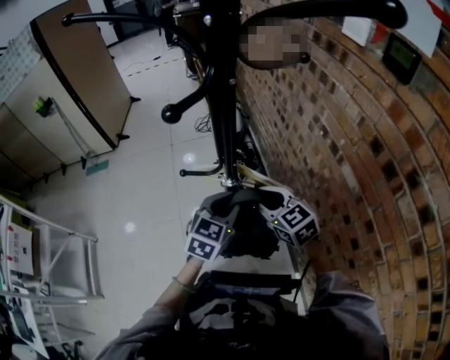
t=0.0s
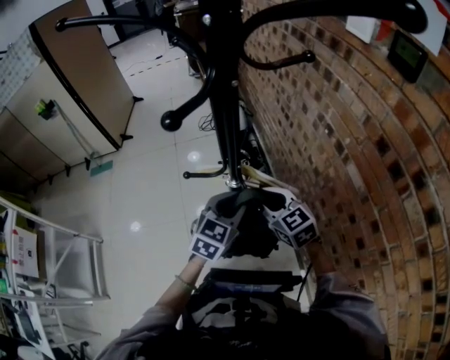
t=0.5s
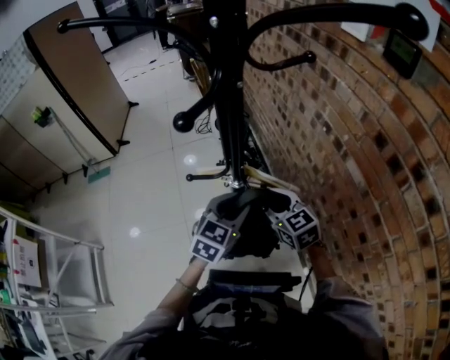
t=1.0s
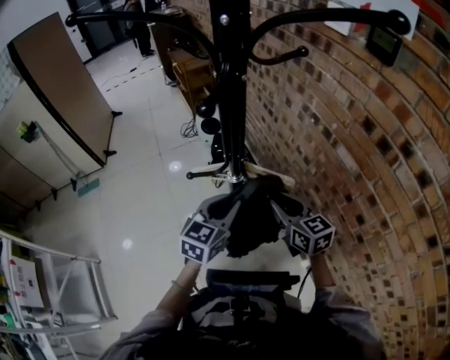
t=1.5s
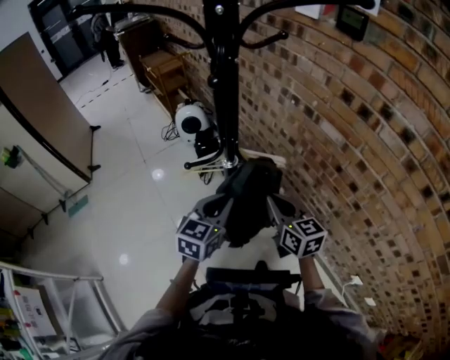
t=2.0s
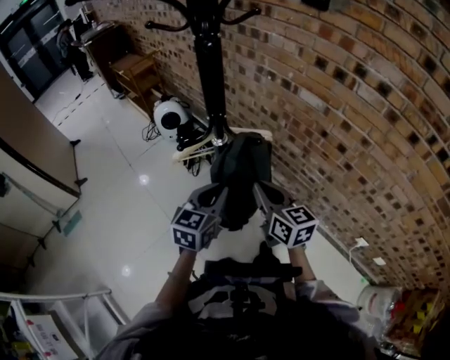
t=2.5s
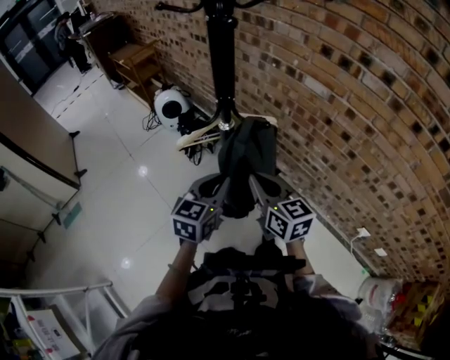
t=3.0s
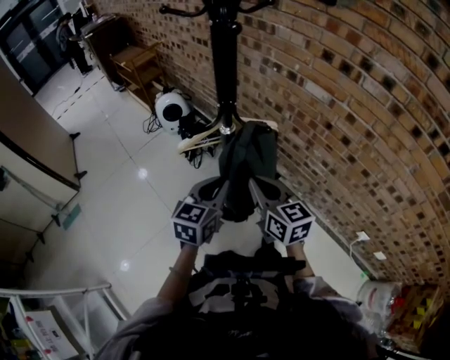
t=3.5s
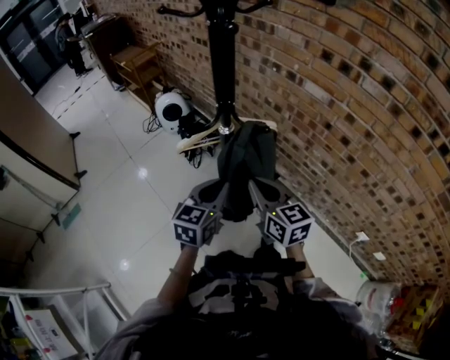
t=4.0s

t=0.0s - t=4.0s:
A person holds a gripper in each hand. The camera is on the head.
t=0.0s - t=2.0s: The left gripper moves approximately 10 cm, and turns by roughly 20 degrees. Meanwhile the right gripper shifts by roughly 10 cm, and turns by about 40 degrees.
t=2.0s - t=4.0s: The left gripper goes approximately 5 cm backward. The right gripper heads backward and to the left, covering approximately 10 cm.

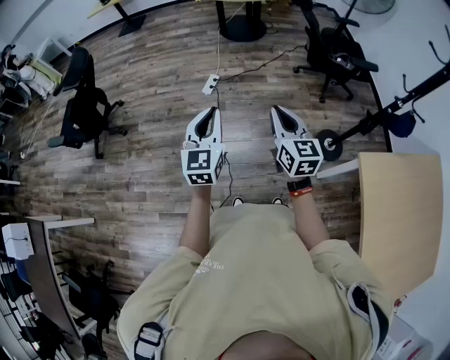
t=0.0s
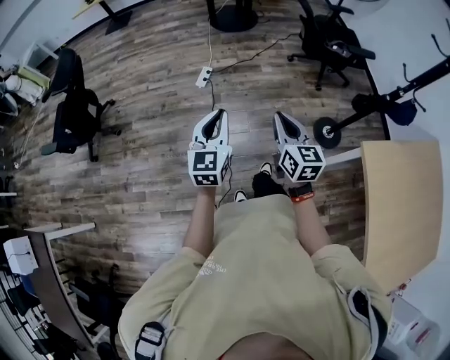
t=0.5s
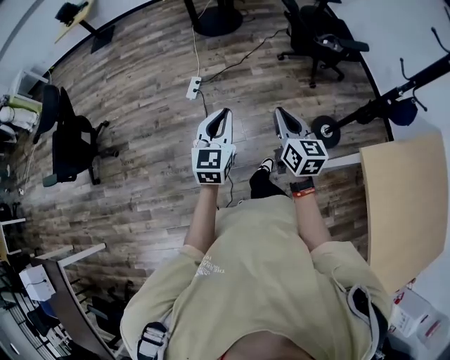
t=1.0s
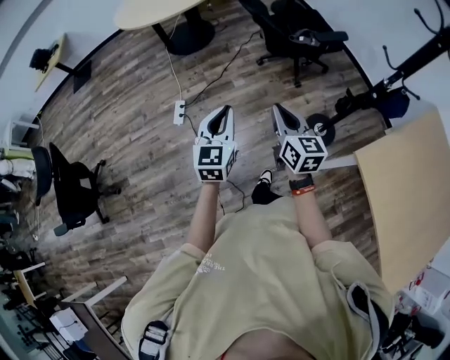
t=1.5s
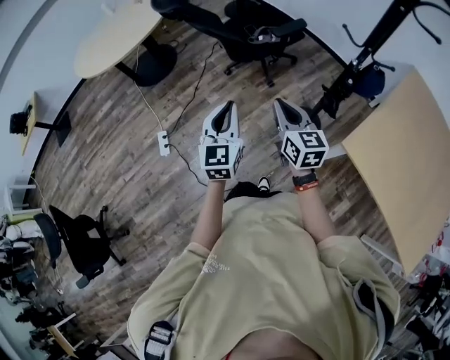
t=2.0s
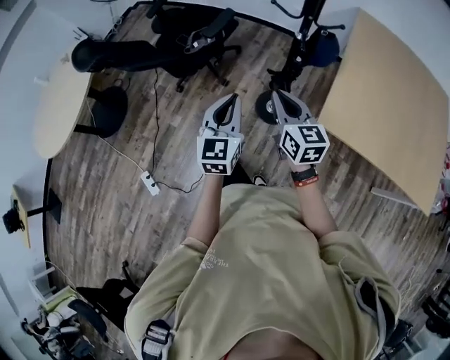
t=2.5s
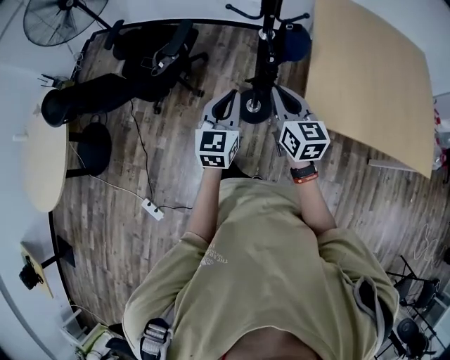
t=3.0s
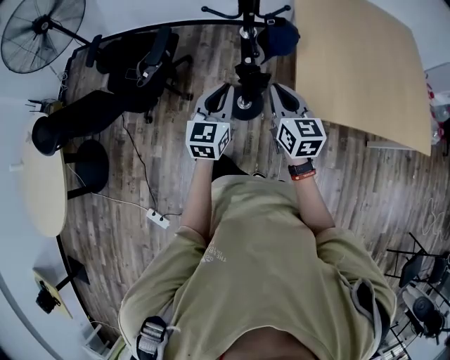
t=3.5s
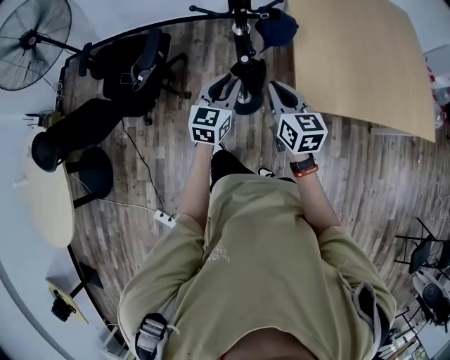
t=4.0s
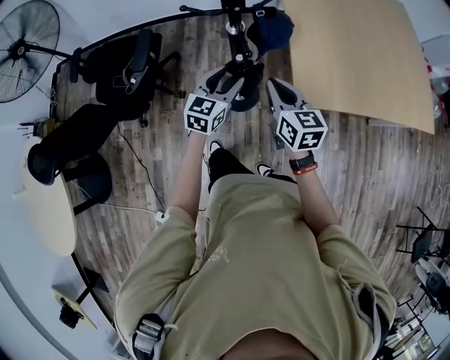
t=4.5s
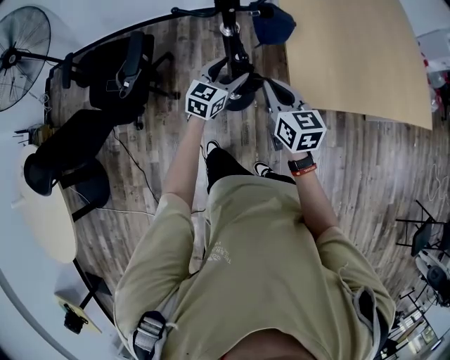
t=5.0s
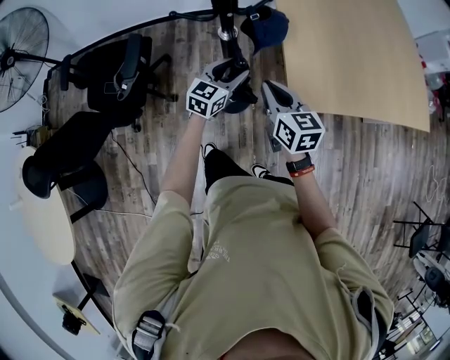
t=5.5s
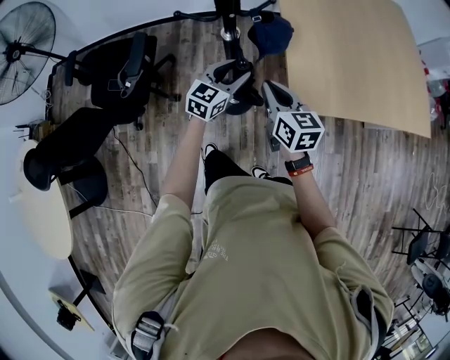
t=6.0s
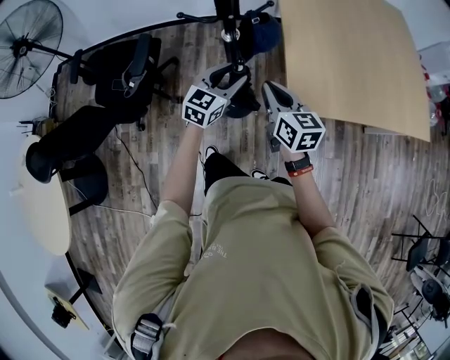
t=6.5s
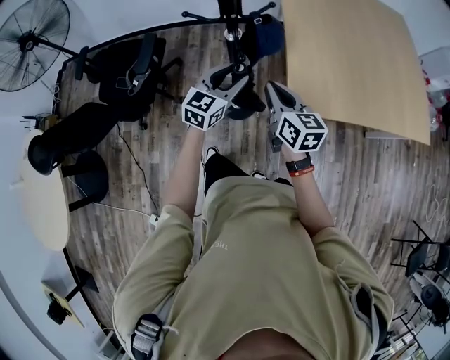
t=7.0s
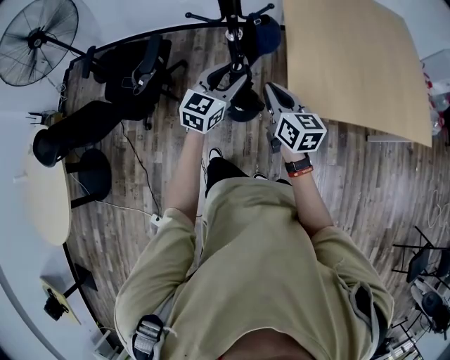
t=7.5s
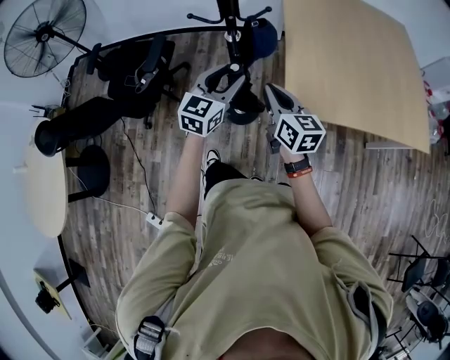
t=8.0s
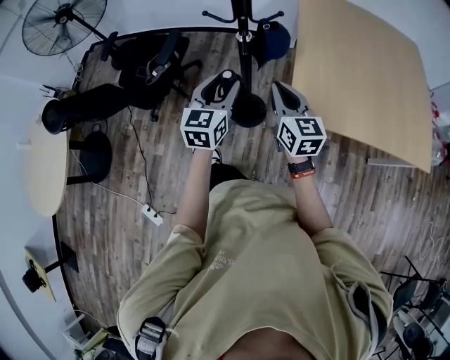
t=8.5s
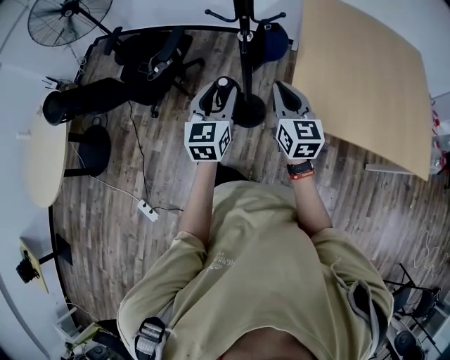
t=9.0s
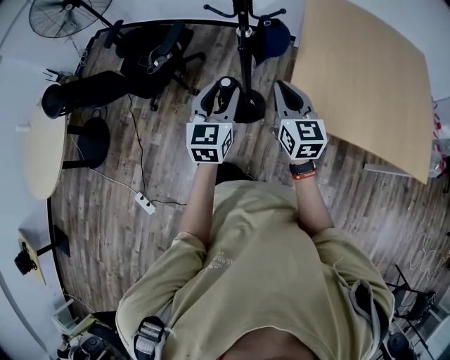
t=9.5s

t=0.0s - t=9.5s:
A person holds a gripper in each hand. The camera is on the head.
t=0.0s - t=2.0s: The two grippers travel together, roughly 50 cm. The right gripper rotates approximately 30 degrees; the left gripper changes its angle by some 30 degrees.
t=2.0s - t=4.0s: The left gripper moves about 40 cm, and swivels roughly 60 degrees. The right gripper moves approximately 30 cm, and changes its angle by approximately 50 degrees.
t=4.0s - t=5.5s: The right gripper shifts by approximately 5 cm. Meanwhile the left gripper heads forward and downward, covering some 10 cm, and opens its fingers.
t=5.5s - t=7.5s: The right gripper is displaced backward by about 5 cm, while the left gripper moves upward and backward, roughly 15 cm.
t=7.5s - t=9.5s: The right gripper travels to the right by approximately 5 cm, and turns by some 20 degrees. The left gripper heads backward, covering approximately 10 cm, and swivels some 30 degrees.

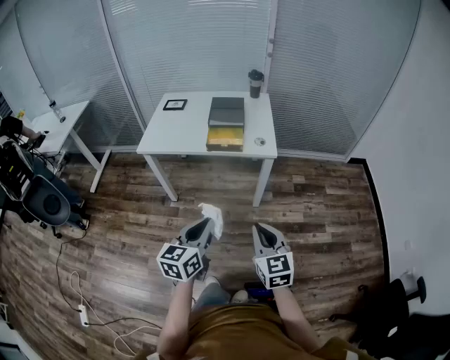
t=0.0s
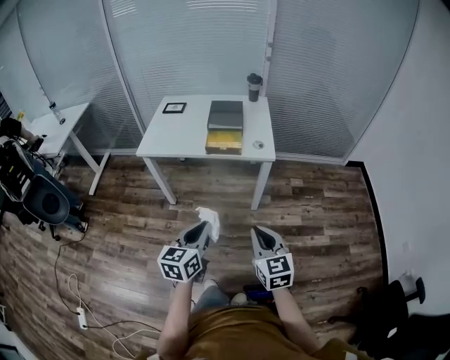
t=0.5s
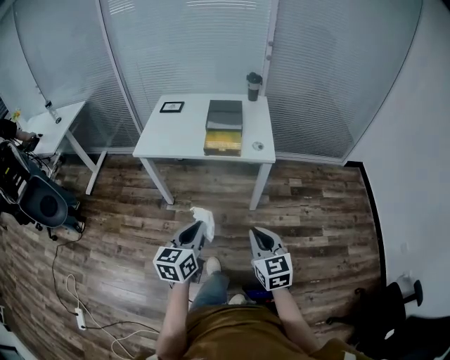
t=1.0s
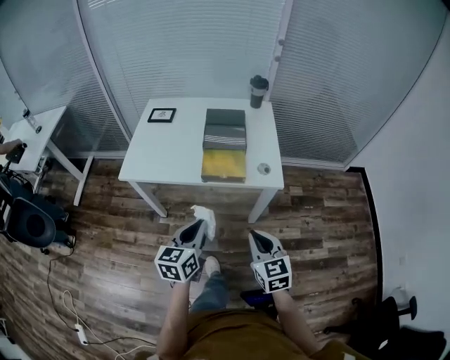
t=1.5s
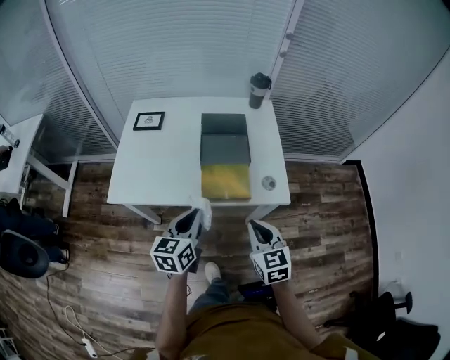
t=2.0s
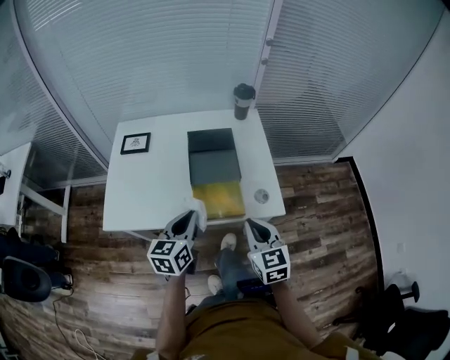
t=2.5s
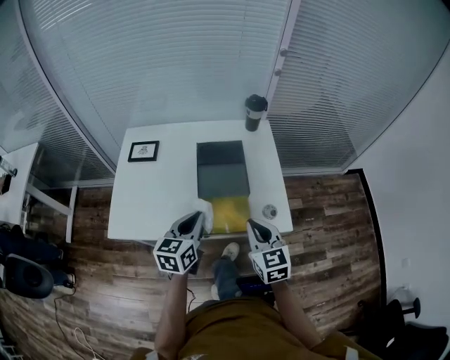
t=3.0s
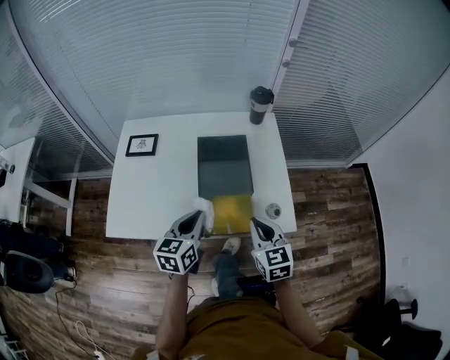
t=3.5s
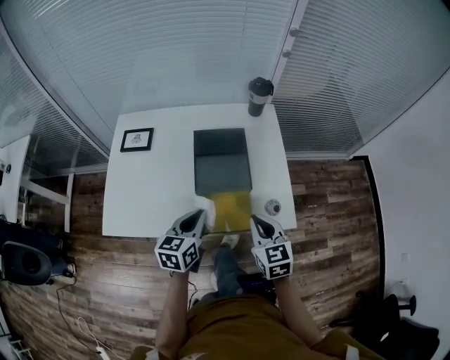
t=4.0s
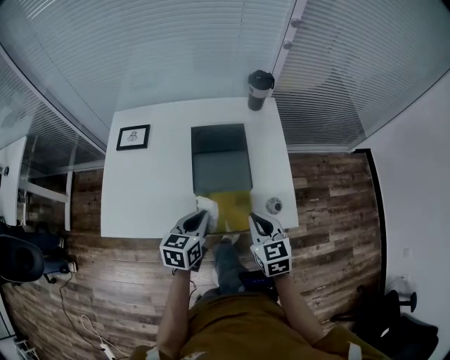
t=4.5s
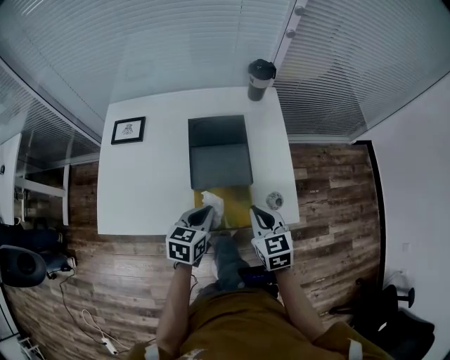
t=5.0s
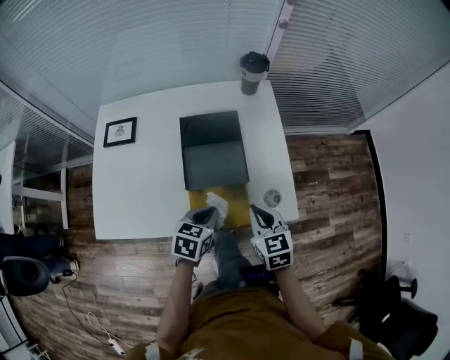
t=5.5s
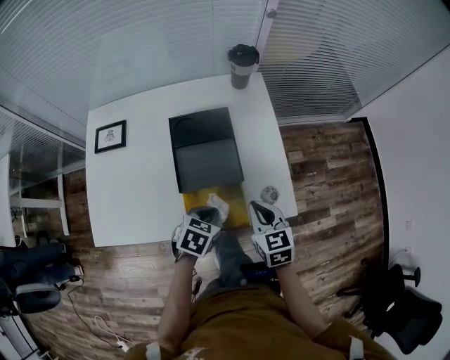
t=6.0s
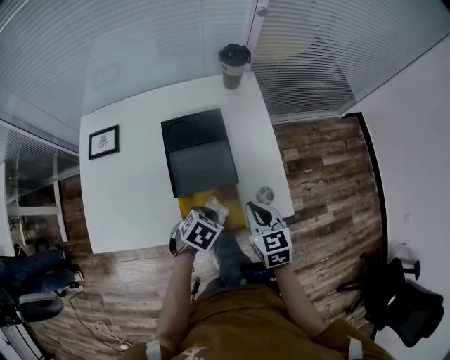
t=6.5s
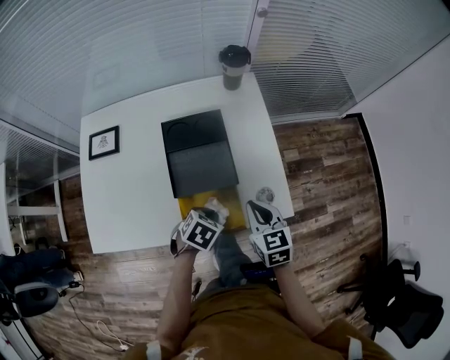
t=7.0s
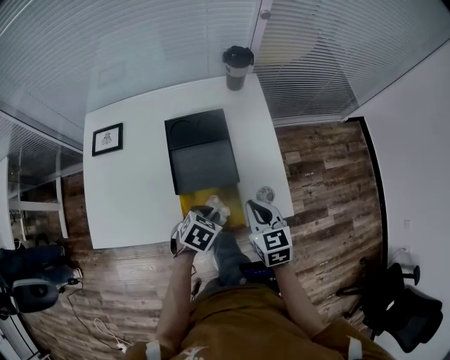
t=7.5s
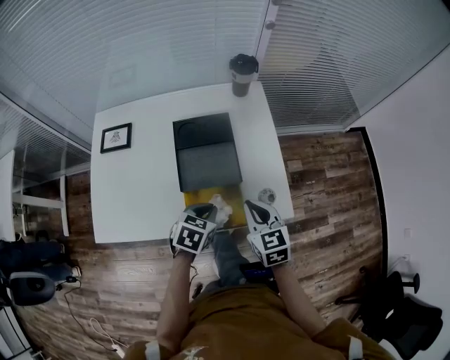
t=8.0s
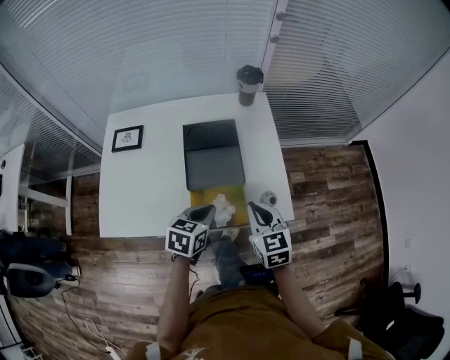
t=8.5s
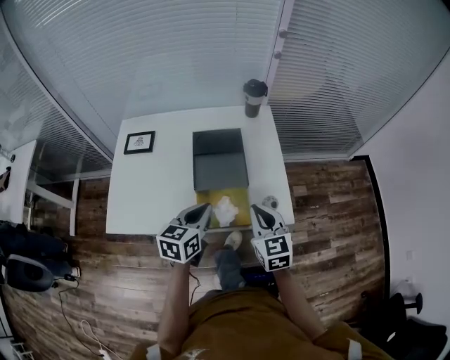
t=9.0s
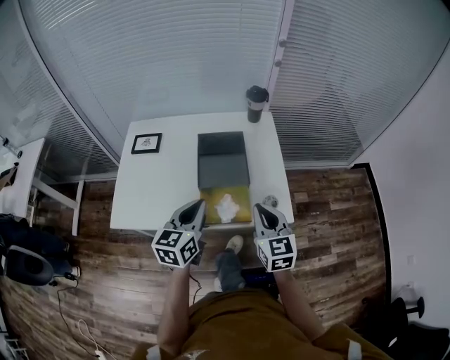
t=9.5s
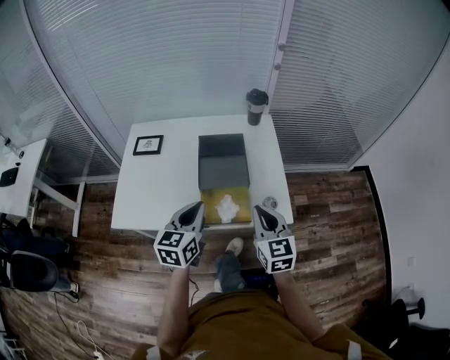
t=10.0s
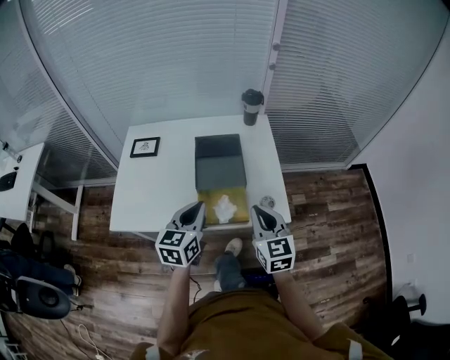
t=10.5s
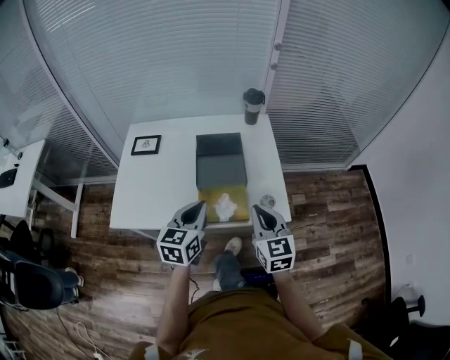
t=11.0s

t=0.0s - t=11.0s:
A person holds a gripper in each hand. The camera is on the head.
t=0.0s - t=2.0s: The grippers both shift forward by approximately 35 cm.
t=2.0s - t=3.5s: The two grippers go approximately 15 cm forward.
t=3.5s - t=5.5s: The right gripper heads downward, covering approximately 5 cm, while the left gripper is displaced downward and to the right by about 15 cm, and swivels approximately 30 degrees.
t=5.5s - t=7.5s: The left gripper rotates about 20 degrees.
t=7.5s - t=9.0s: The right gripper is displaced upward by about 10 cm. Meanwhile the left gripper shifts some 15 cm upward, and tilts its fingers approximately 40 degrees upward.
t=9.0s - t=11.0s: The left gripper shifts by approximately 5 cm; the right gripper shifts by about 5 cm.

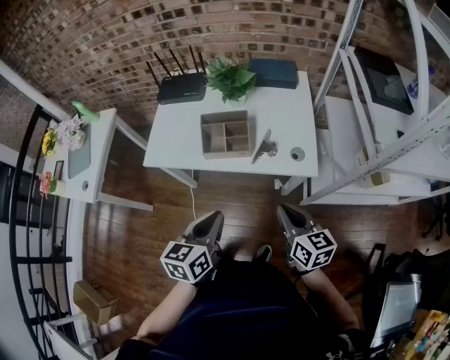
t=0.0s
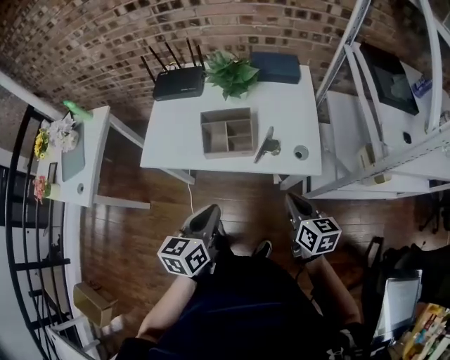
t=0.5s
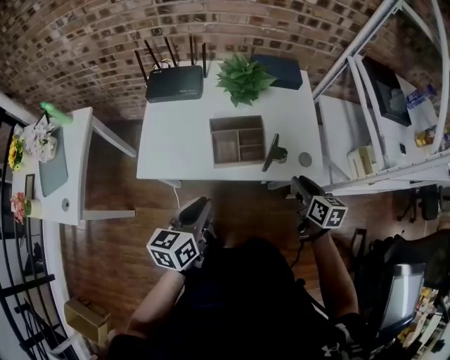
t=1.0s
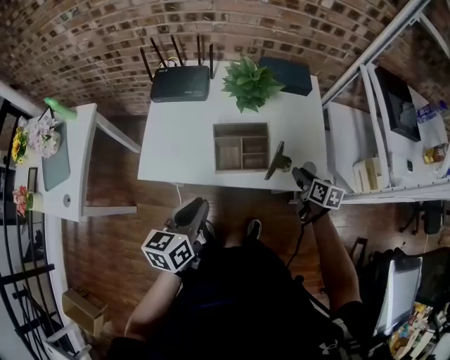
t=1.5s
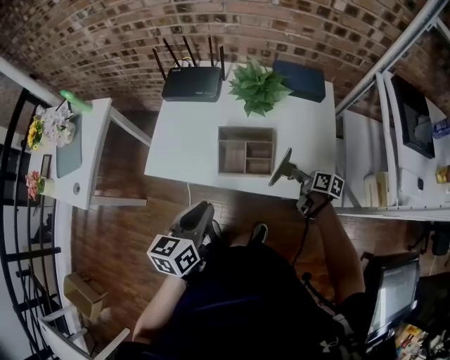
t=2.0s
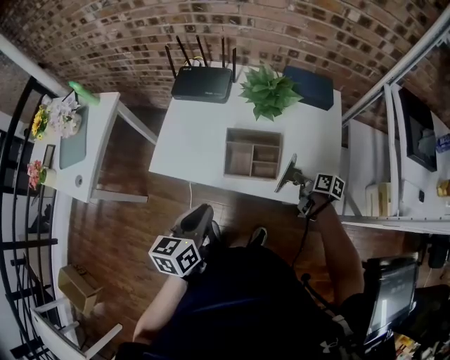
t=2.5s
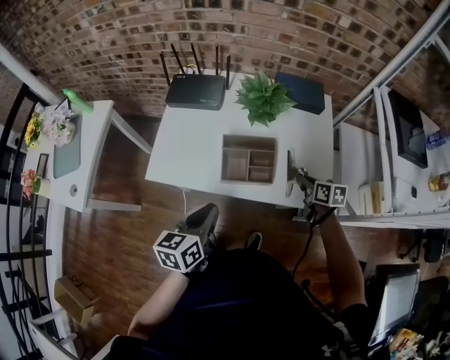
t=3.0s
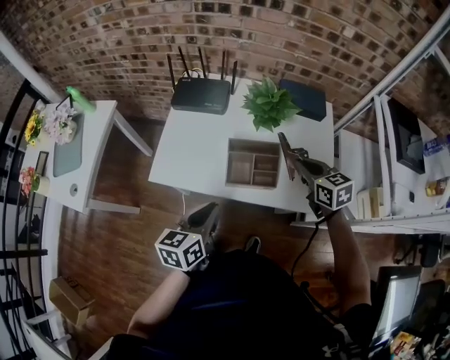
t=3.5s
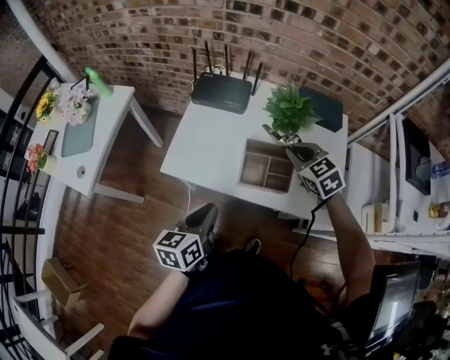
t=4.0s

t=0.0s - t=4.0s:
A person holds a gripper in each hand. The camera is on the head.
t=0.0s - t=2.0s: The right gripper is displaced forward and downward by about 30 cm, changes its angle by some 40 degrees, and opens up, while the left gripper shifts some 15 cm forward and to the left.
t=2.0s - t=4.0s: The right gripper shifts some 30 cm upward, to the left and forward, rolls counterclockwise, seen from behind, by about 80 degrees, and closes up. Meanwhile the left gripper heads to the left, covering some 5 cm.
